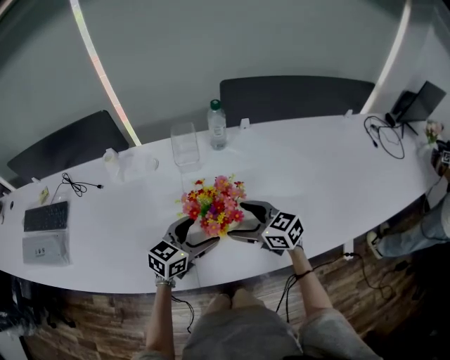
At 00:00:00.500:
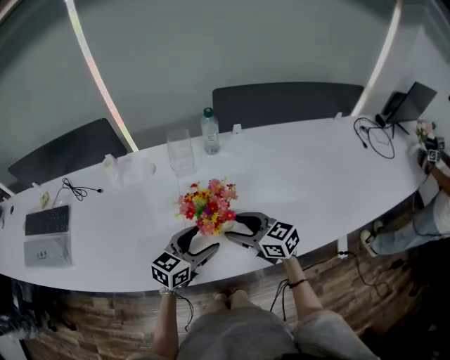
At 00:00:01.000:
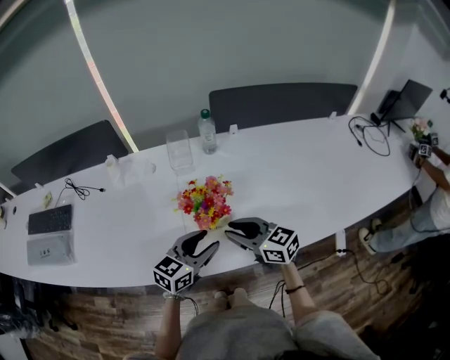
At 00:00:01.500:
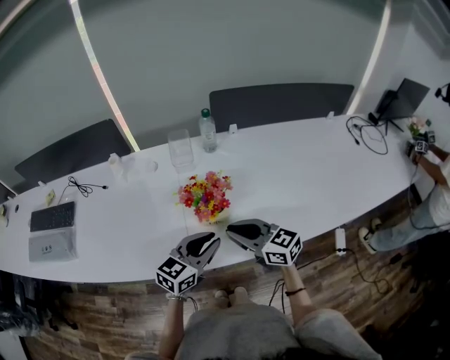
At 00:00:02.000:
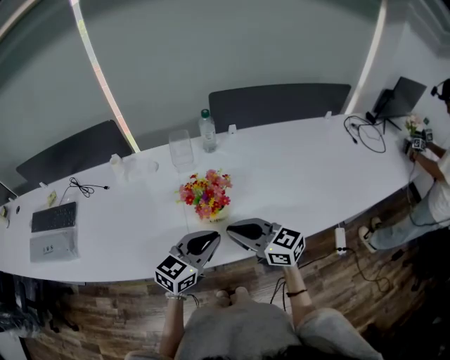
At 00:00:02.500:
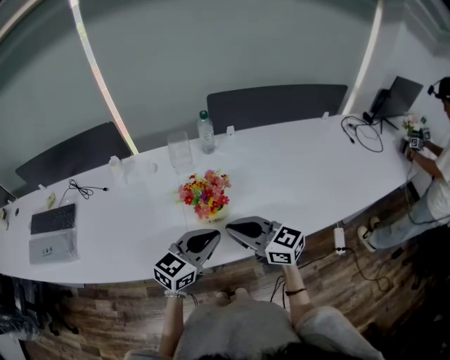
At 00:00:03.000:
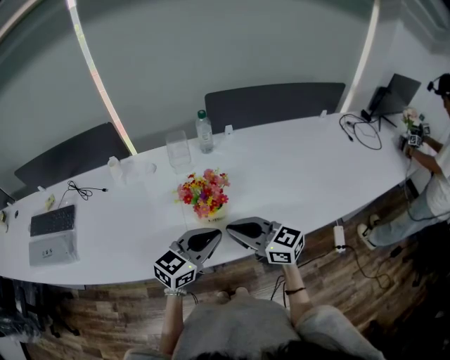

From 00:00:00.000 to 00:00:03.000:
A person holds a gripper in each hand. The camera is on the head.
From 00:00:00.000 to 00:00:01.500: The two grippers go approximately 15 cm backward and upward. The left gripper closes its fingers. The right gripper closes up.
From 00:00:01.500 to 00:00:03.000: The grippers move only a little.

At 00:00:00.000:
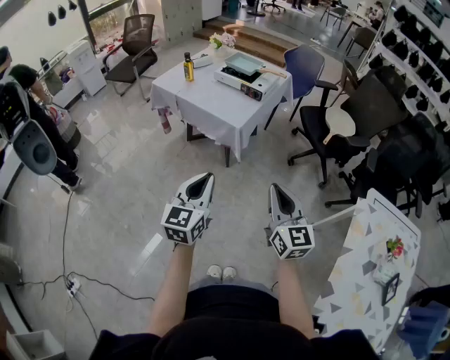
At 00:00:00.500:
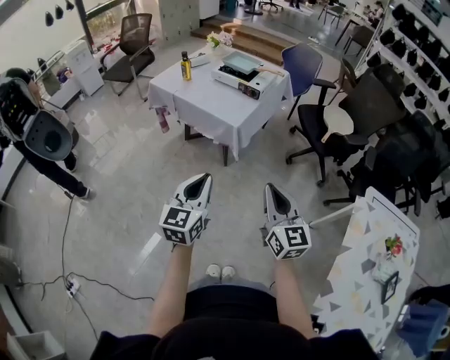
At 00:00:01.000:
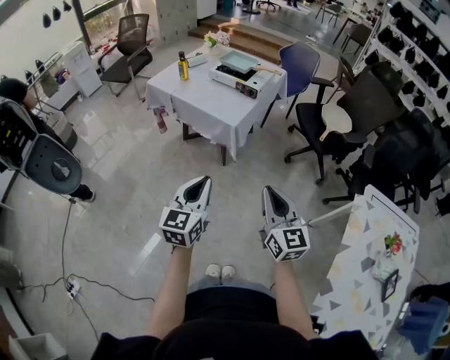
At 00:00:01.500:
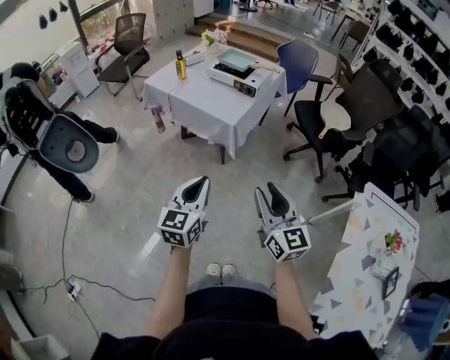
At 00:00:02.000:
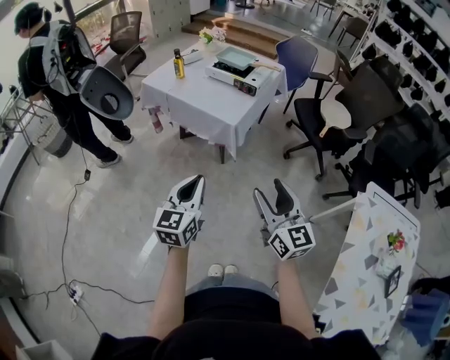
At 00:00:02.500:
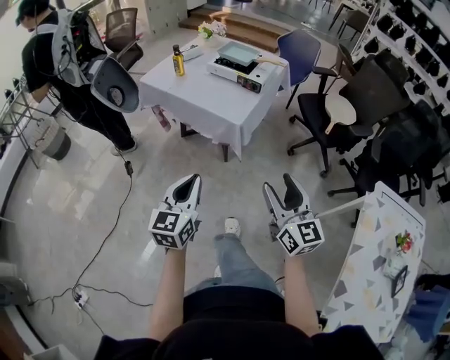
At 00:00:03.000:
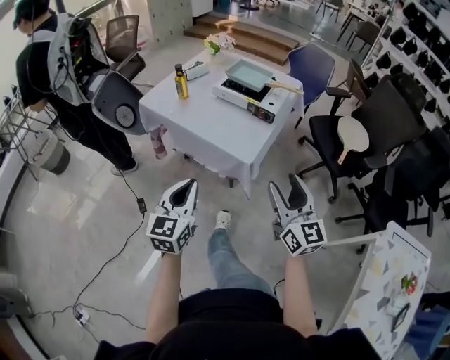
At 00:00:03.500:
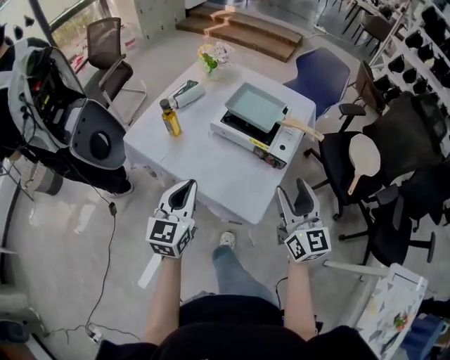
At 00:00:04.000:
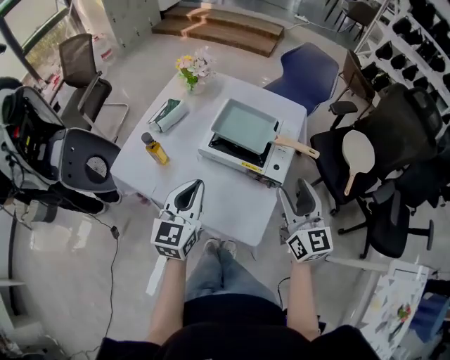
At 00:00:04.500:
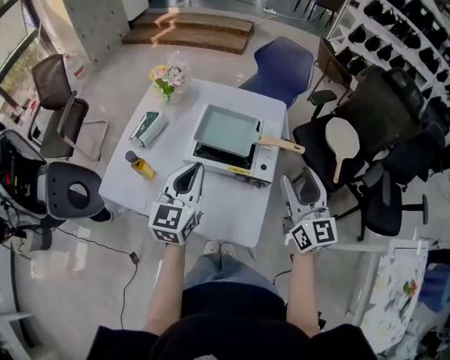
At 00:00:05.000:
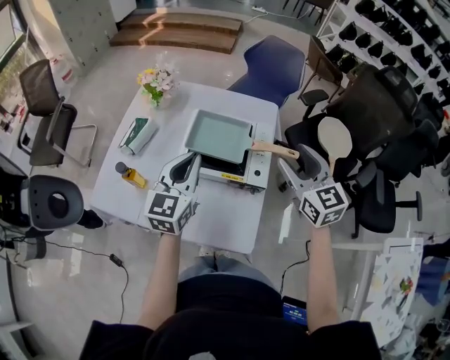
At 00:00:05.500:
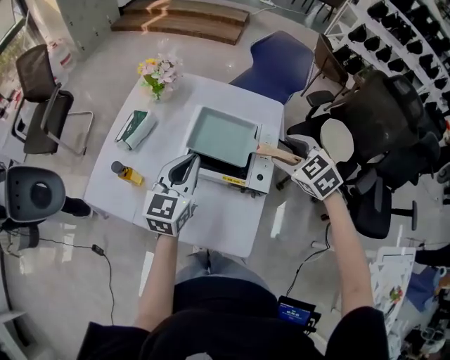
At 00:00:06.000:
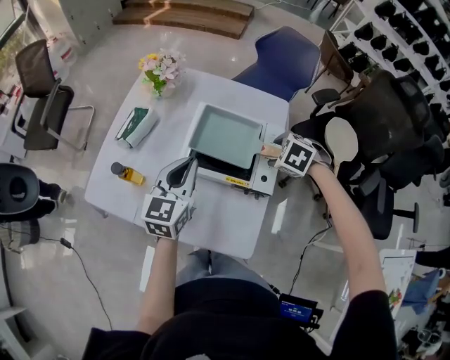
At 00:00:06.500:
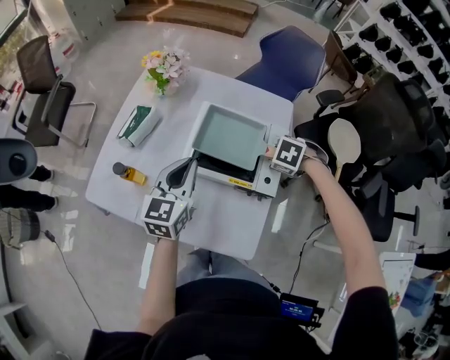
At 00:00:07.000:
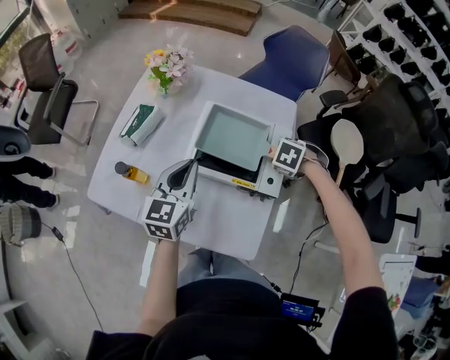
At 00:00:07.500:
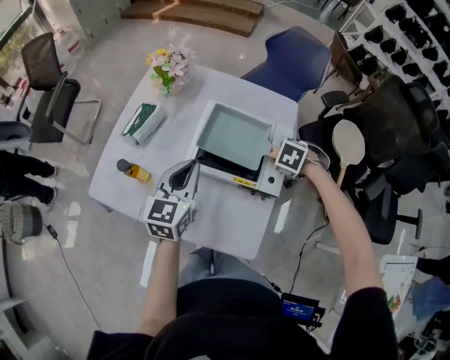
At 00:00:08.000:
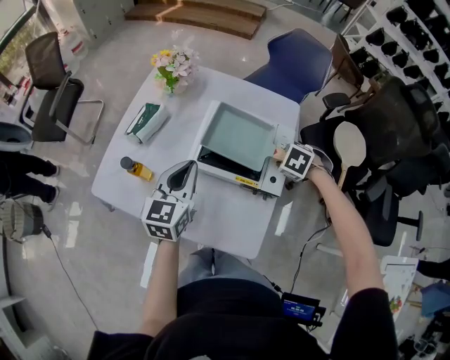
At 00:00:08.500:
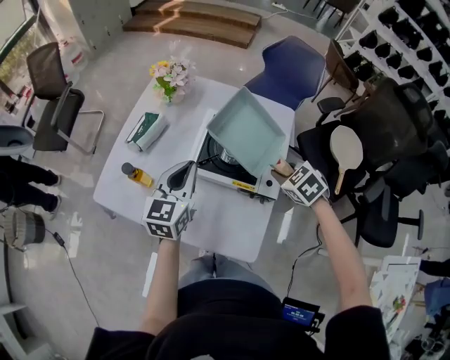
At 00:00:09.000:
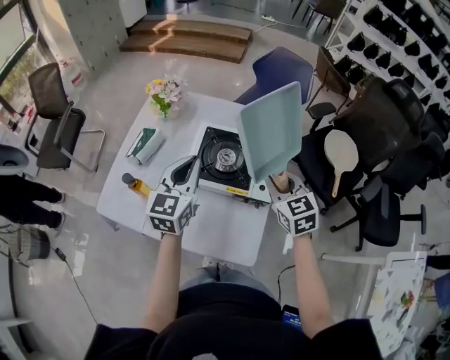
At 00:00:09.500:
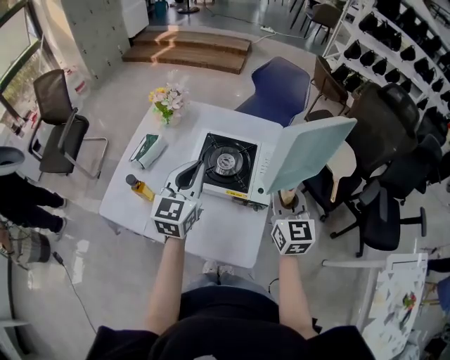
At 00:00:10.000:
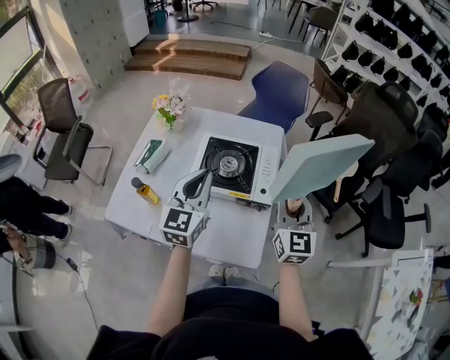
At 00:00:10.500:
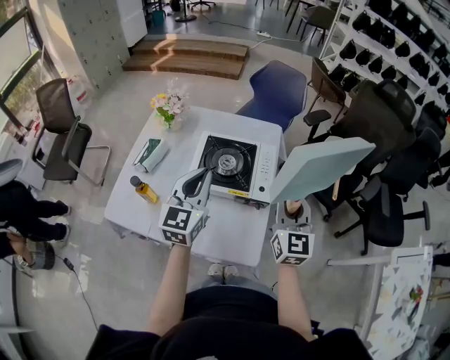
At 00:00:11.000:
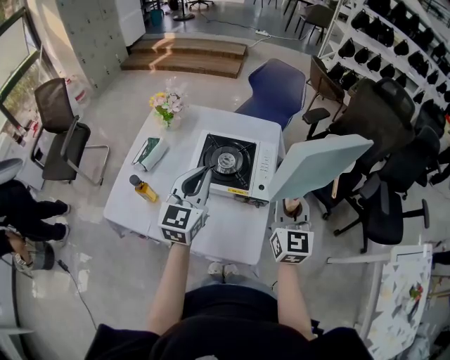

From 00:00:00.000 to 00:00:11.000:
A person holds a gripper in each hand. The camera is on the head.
From 00:00:00.000 to 00:00:02.000: The right gripper opens.
From 00:00:02.000 to 00:00:03.500: The two grippers travel together, forward, about 50 cm.
From 00:00:03.500 to 00:00:05.500: The grippers both shift forward by roughly 25 cm. The right gripper tilts its fingers approximately 50 degrees downward.
From 00:00:05.500 to 00:00:07.500: The right gripper shifts about 15 cm downward, tilts its fingers roughly 40 degrees downward, and closes up.
From 00:00:07.500 to 00:00:09.000: The left gripper goes some 5 cm upward. Meanwhile the right gripper shifts some 15 cm upward, and angles its fingers upward, by approximately 60 degrees.
From 00:00:09.000 to 00:00:11.000: The right gripper moves backward and upward, roughly 10 cm, and turns by roughly 30 degrees. The left gripper is displaced backward by some 5 cm.

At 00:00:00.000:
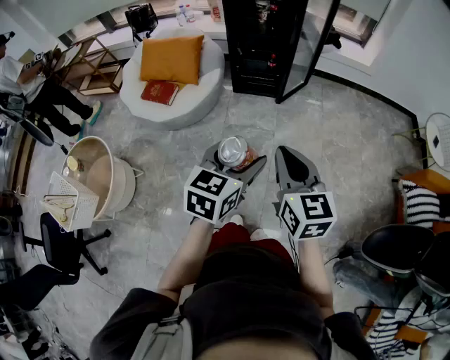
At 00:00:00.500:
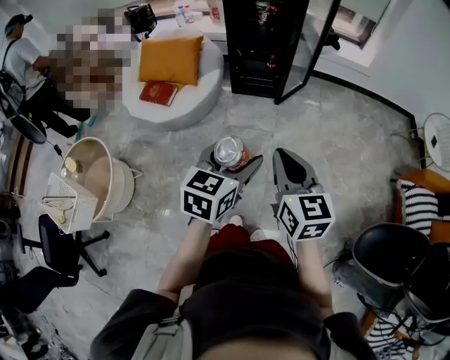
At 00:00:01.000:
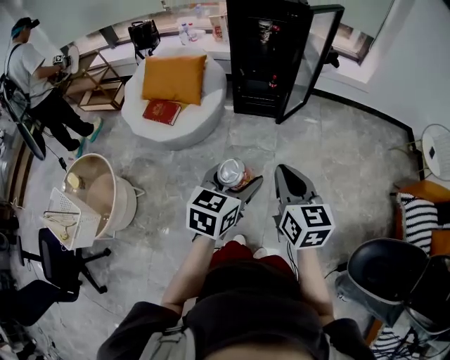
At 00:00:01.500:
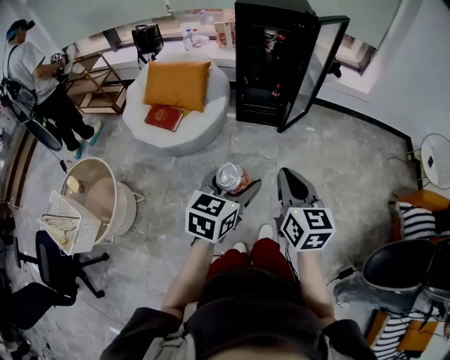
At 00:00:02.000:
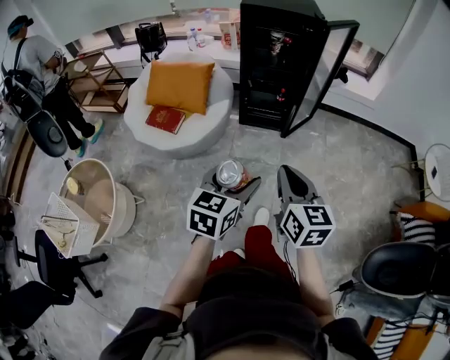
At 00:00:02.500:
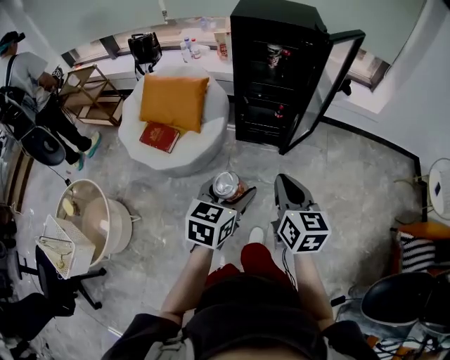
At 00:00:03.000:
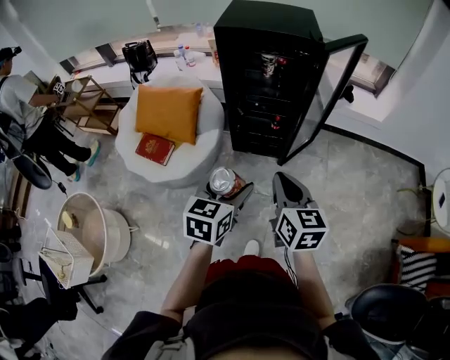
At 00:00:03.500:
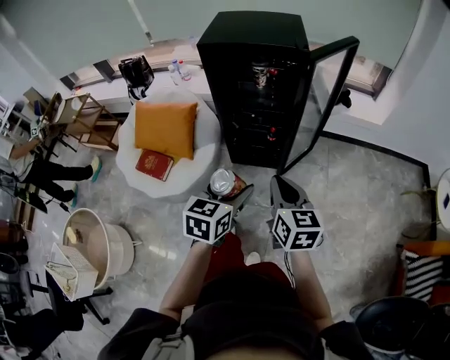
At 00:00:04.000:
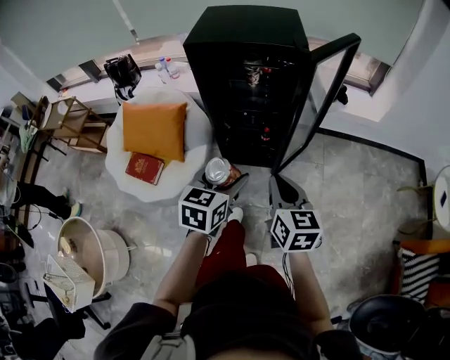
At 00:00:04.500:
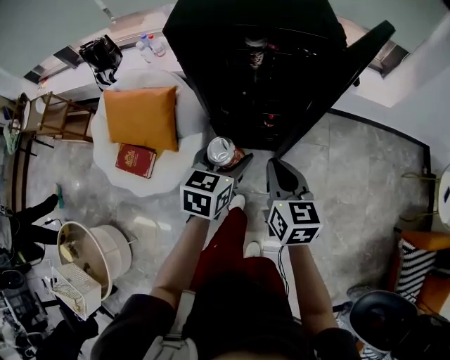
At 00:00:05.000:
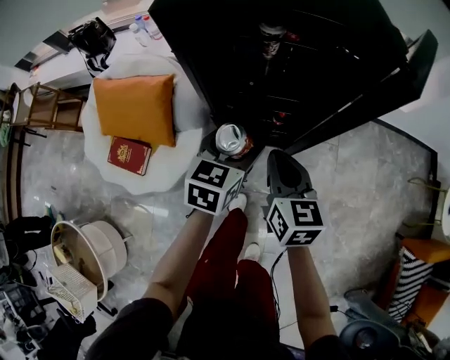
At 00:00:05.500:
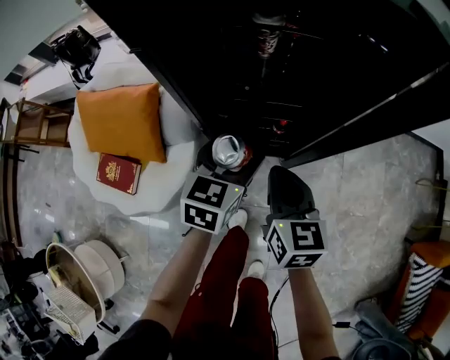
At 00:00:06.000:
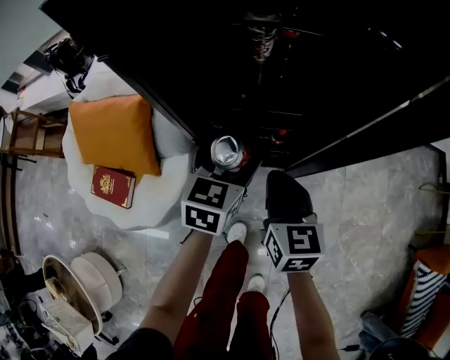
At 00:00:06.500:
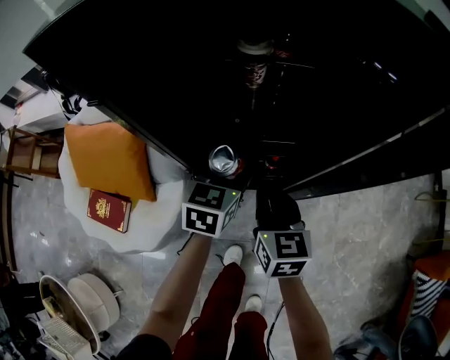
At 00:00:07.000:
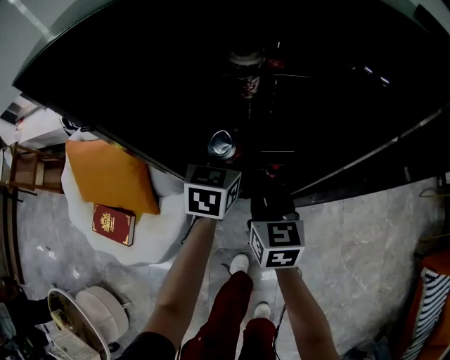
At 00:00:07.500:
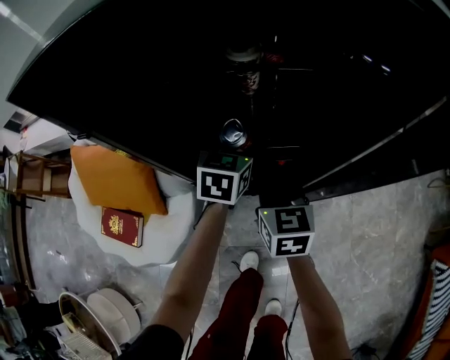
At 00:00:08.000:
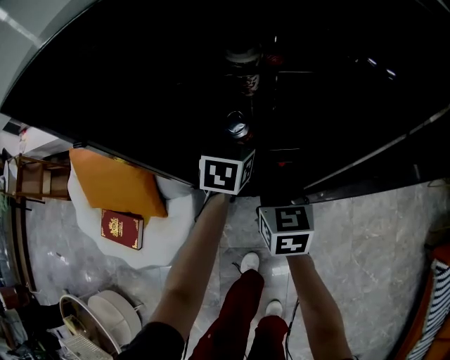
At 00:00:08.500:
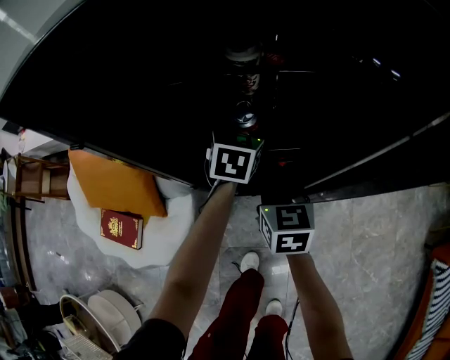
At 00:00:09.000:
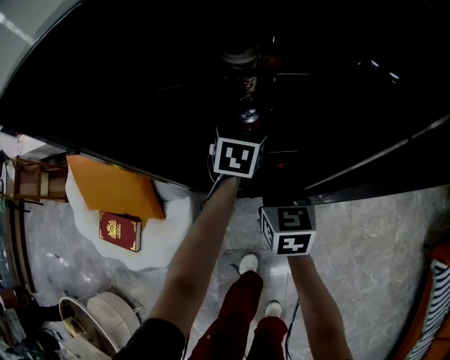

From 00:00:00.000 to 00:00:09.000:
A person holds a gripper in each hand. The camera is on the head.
From 00:00:00.000 to 00:00:02.000: The left gripper goes some 10 cm to the left and forward. The right gripper moves forward and to the left, approximately 10 cm.
From 00:00:02.000 to 00:00:04.500: The two grippers travel together, forward, about 50 cm.
From 00:00:04.500 to 00:00:07.000: The right gripper travels downward and forward by approximately 30 cm. Meanwhile the left gripper is displaced forward and downward by roughly 35 cm.
From 00:00:07.000 to 00:00:09.000: The left gripper heads forward, covering roughly 10 cm.

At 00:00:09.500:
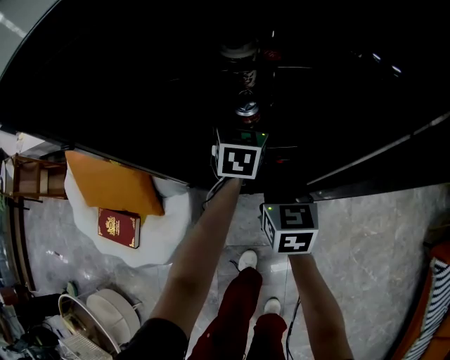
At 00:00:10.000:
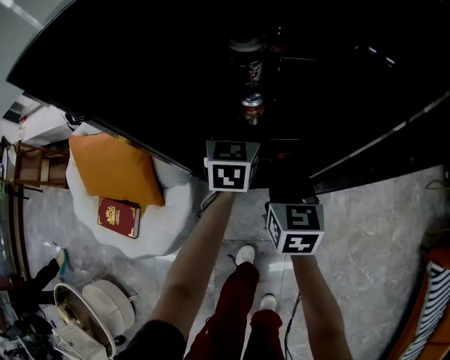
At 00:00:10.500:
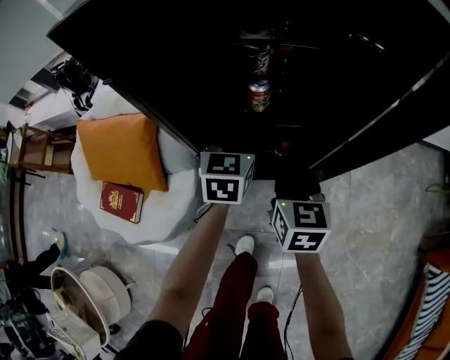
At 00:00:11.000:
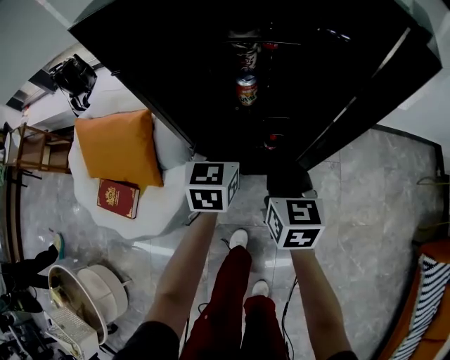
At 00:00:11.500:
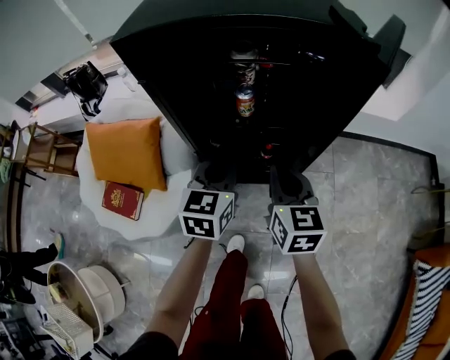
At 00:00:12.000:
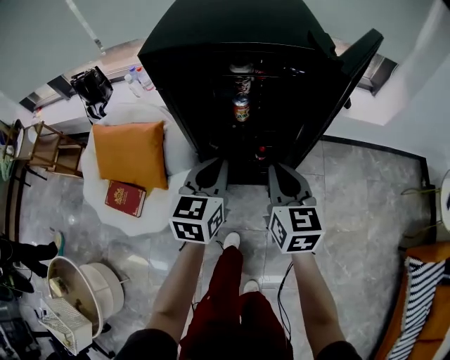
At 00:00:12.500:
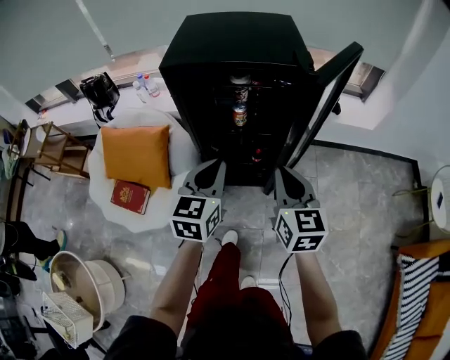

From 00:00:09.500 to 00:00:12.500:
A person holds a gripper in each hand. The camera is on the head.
From 00:00:09.500 to 00:00:11.000: The left gripper moves backward and upward, some 20 cm, and closes its fingers; the right gripper travels backward and upward by approximately 10 cm.
From 00:00:11.000 to 00:00:12.500: Both grippers travel together upward and backward, about 25 cm.
